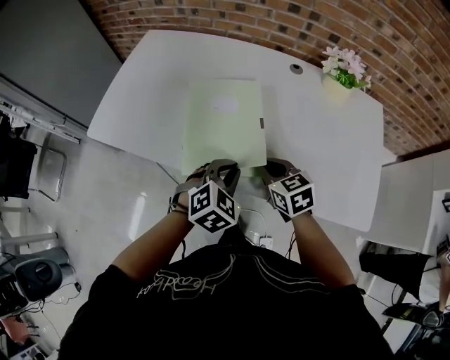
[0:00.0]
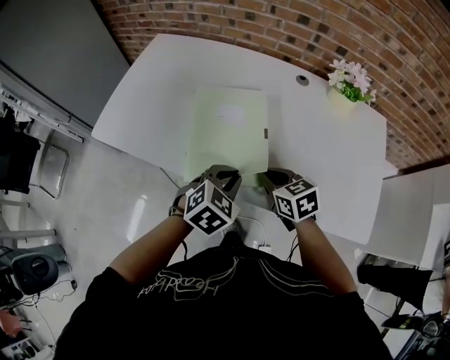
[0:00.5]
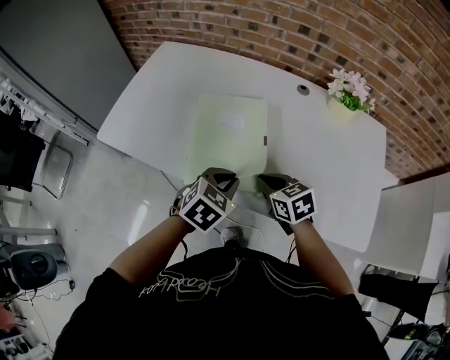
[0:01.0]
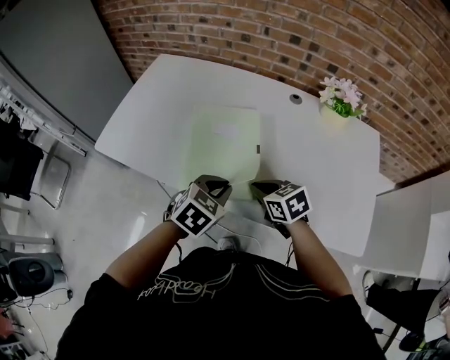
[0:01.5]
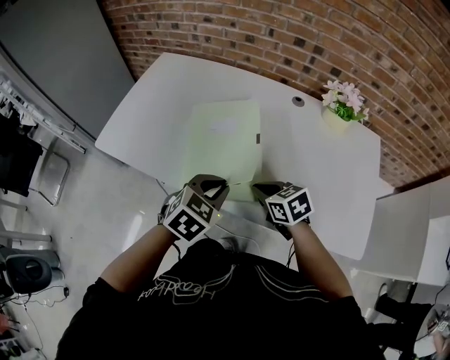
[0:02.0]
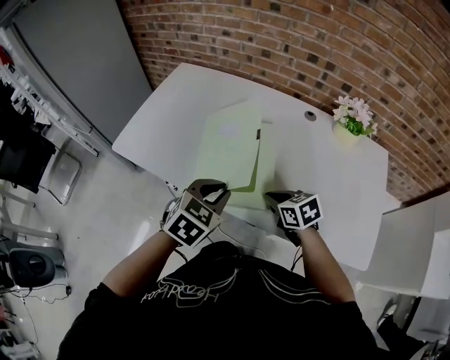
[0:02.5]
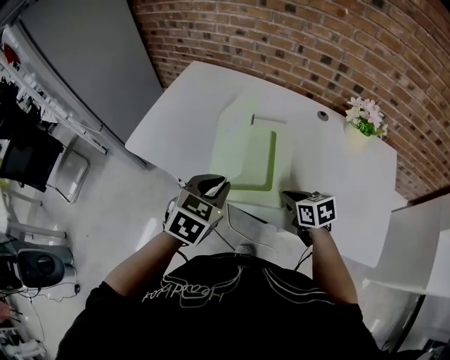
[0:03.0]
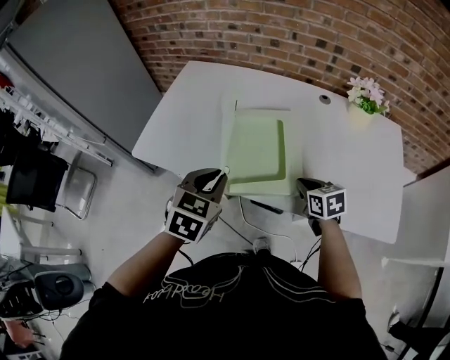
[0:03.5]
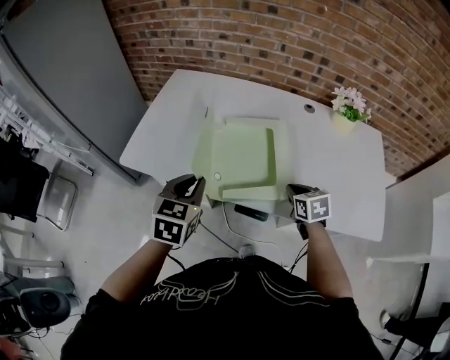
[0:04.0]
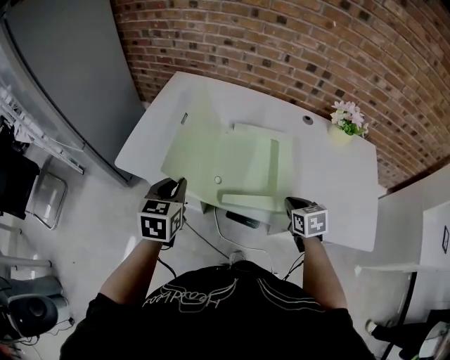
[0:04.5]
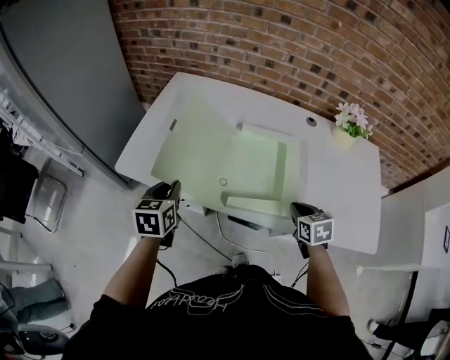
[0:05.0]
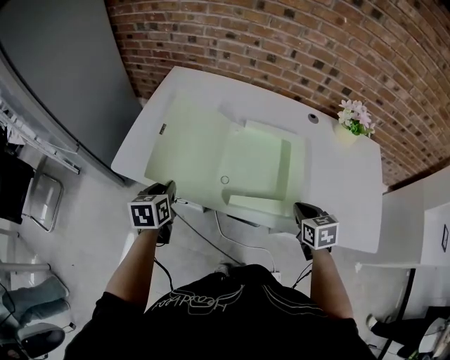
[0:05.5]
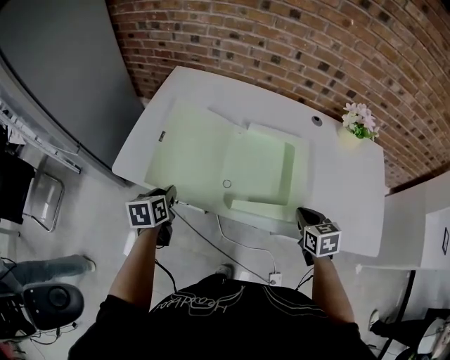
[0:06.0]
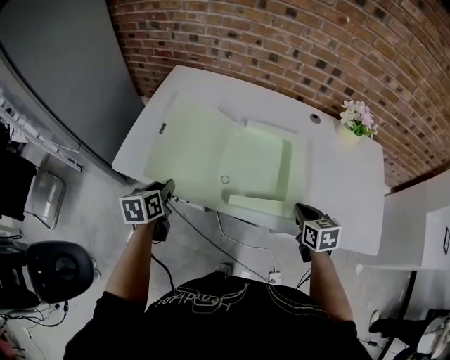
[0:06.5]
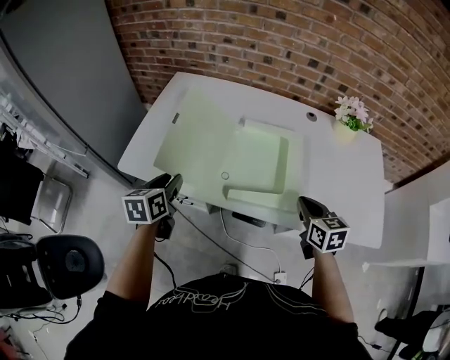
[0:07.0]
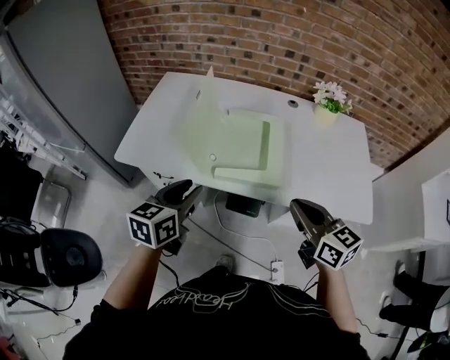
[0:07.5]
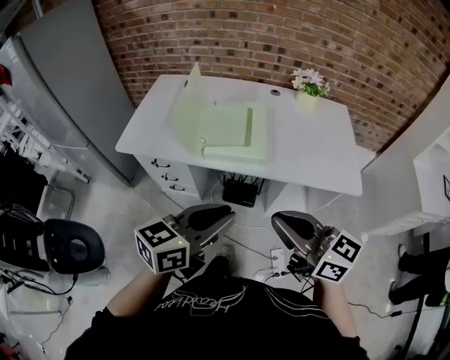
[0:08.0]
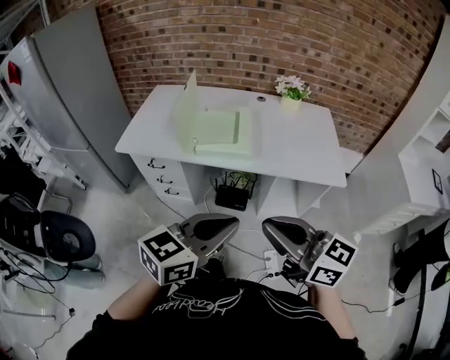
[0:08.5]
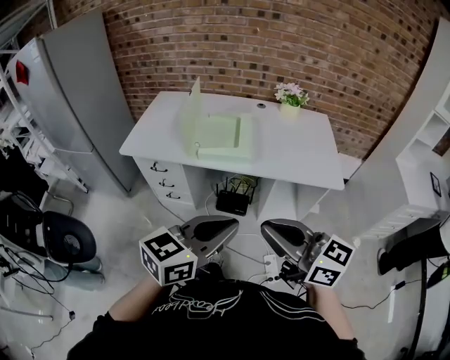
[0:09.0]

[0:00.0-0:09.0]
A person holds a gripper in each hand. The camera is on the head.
0:00.0 to 0:02.0: The grippers stay close to where they were, moving slightly.
0:02.0 to 0:04.5: The right gripper turns by about 30 degrees, while the left gripper is displaced to the left by about 25 cm, and changes its angle by about 30 degrees.
0:04.5 to 0:07.0: The right gripper moves upward, approximately 5 cm. Meanwhile the left gripper travels downward and back again, some 10 cm each way, and opens.
0:07.0 to 0:09.0: The right gripper heads backward and upward, covering some 50 cm, and tips its fingers upward by approximately 40 degrees, while the left gripper travels backward, to the right and upward by some 60 cm, changes its angle by about 50 degrees, and closes up.

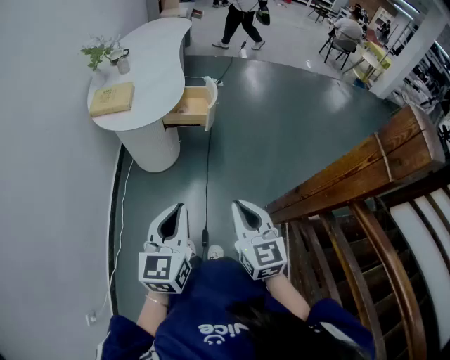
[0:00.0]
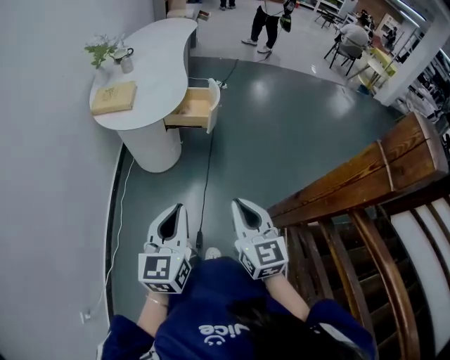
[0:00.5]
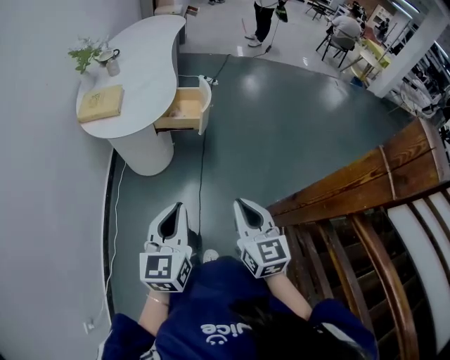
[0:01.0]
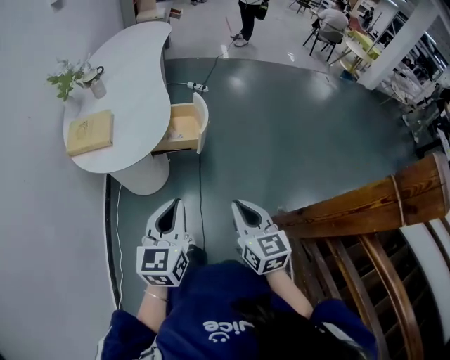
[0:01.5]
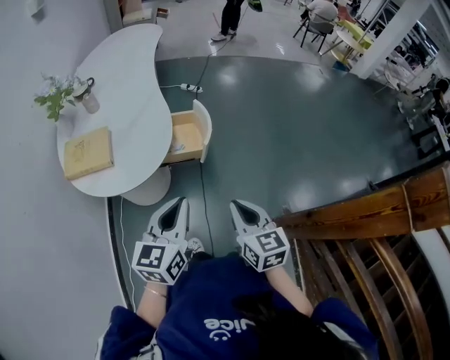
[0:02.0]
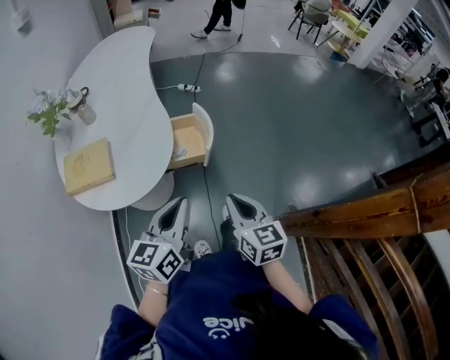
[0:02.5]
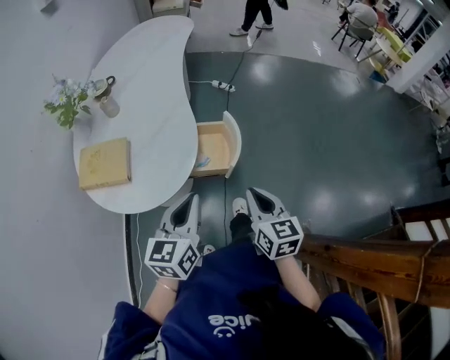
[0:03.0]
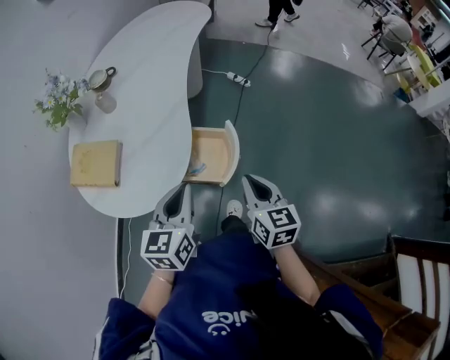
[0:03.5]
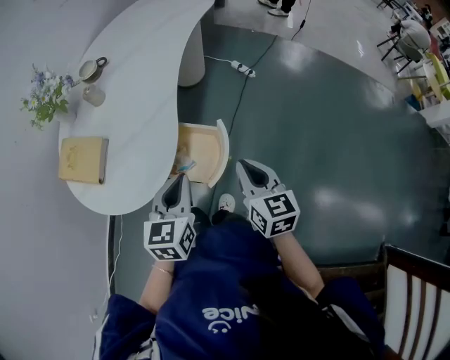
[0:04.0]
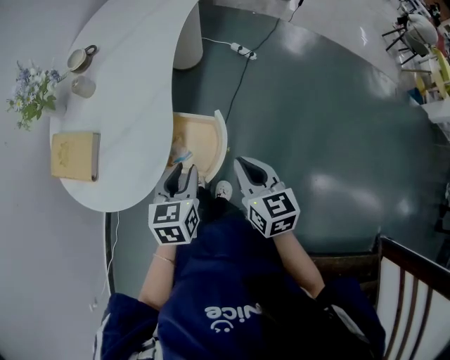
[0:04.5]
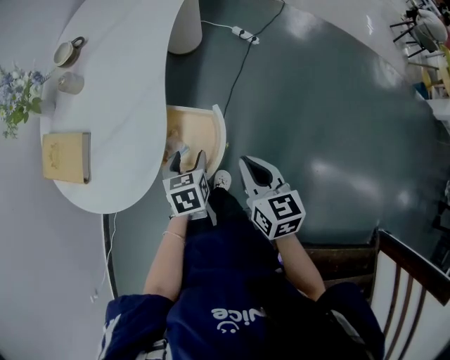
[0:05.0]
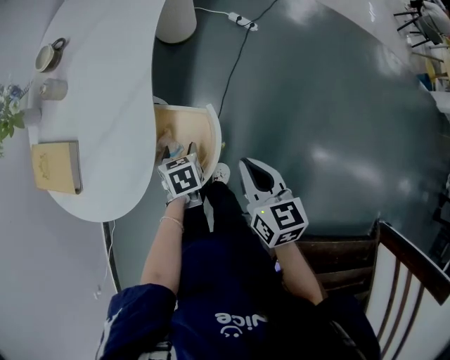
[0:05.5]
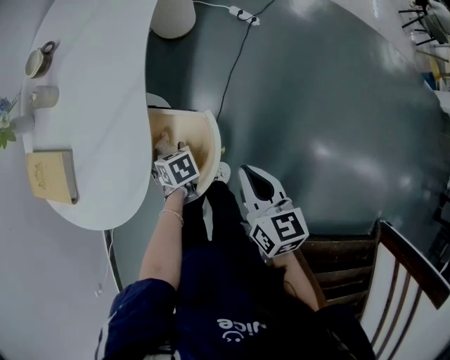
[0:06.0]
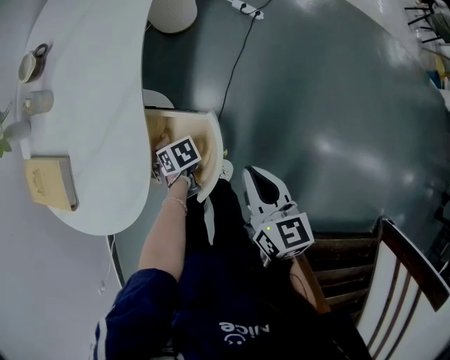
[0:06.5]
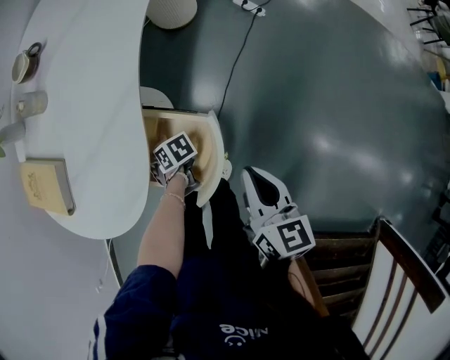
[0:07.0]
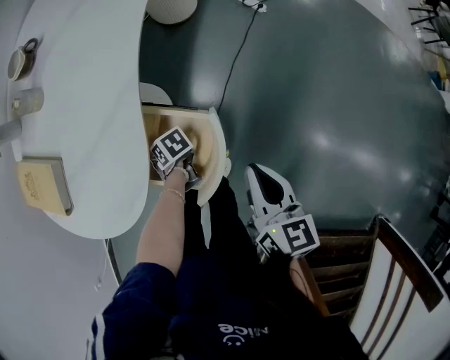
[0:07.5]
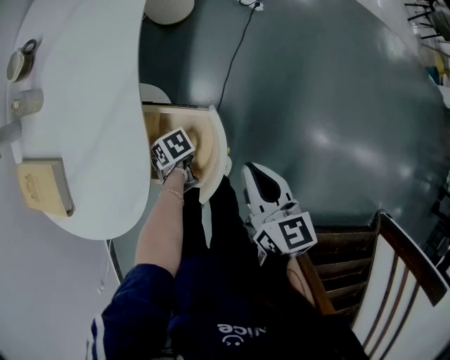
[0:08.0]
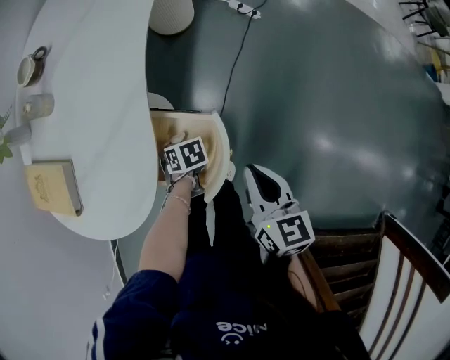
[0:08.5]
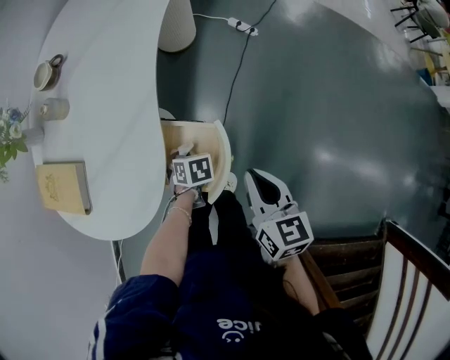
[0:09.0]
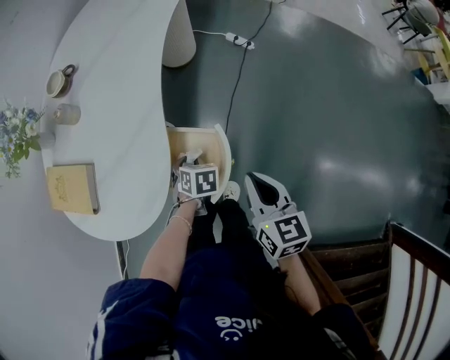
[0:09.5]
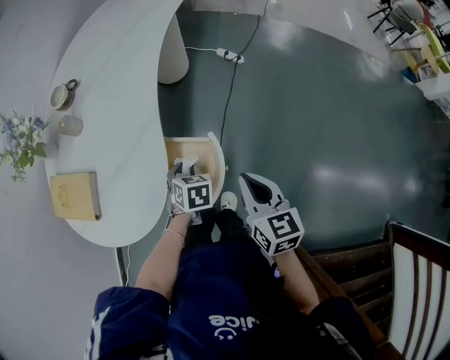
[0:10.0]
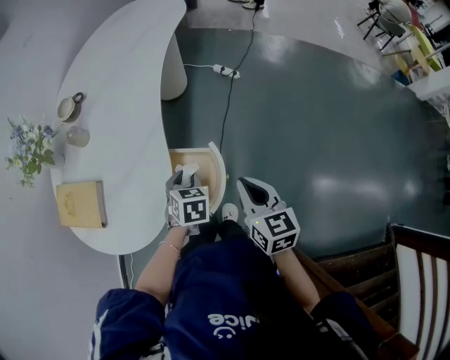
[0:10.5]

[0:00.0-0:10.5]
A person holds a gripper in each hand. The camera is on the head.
0:00.0 to 0:02.0: The two grippers go approximately 25 cm forward.
0:02.0 to 0:04.0: The right gripper ends up approximately 35 cm from where it was, and rotates some 20 degrees. Meanwhile the left gripper ends up roughly 30 cm from where it was, and rotates roughly 30 degrees.
0:04.0 to 0:06.5: The left gripper shifts roughly 35 cm downward, points its fingers approximately 50 degrees further downward, and opens its fingers. The right gripper is displaced downward by roughly 10 cm.
0:06.5 to 0:08.5: The left gripper closes up.
0:08.5 to 0:10.5: The left gripper shifts about 20 cm upward, and changes its angle by some 40 degrees, while the right gripper is displaced upward by approximately 10 cm.

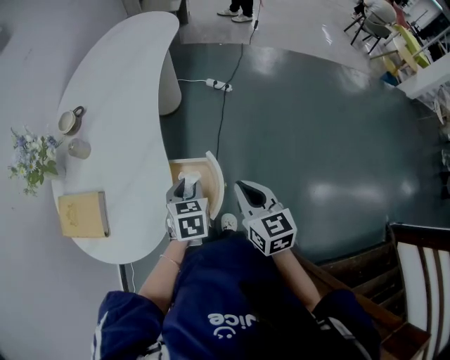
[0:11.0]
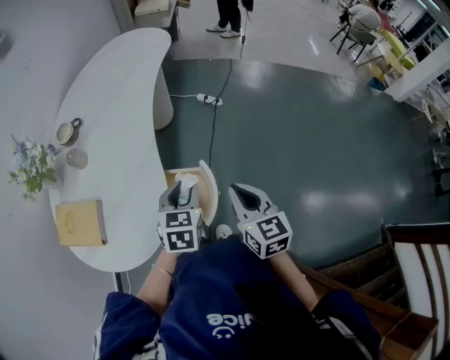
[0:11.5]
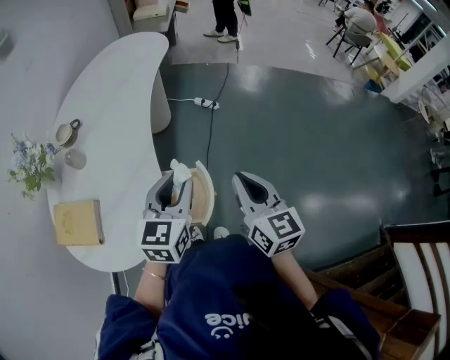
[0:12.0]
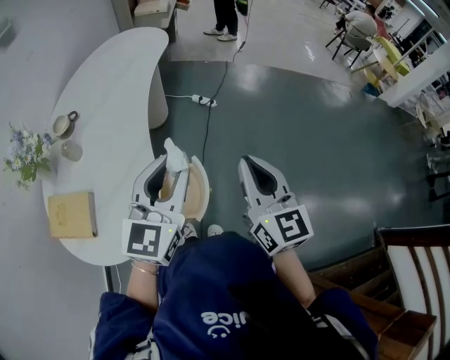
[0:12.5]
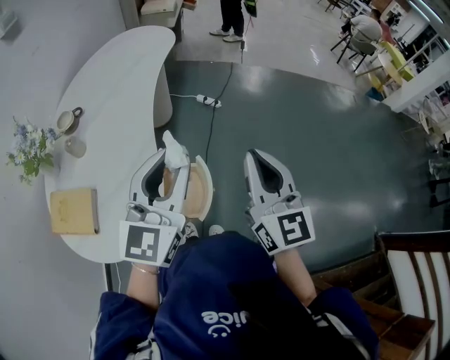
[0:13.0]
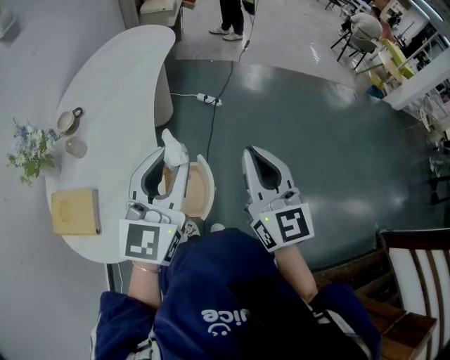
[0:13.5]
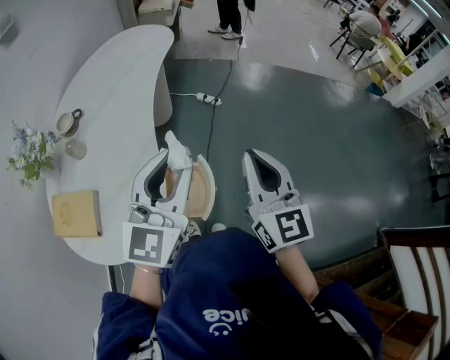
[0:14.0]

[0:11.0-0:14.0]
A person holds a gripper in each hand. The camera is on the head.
0:11.0 to 0:12.5: The right gripper is displaced upward by some 15 cm, and rotates roughly 30 degrees. Meanwhile the left gripper is displaced upward by roughly 25 cm, and points its fingers roughly 50 degrees further upward.
0:12.5 to 0:14.0: The grippers make only small movements.

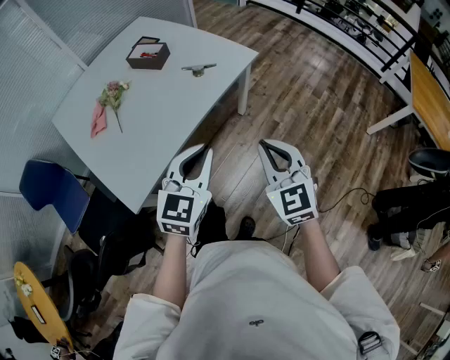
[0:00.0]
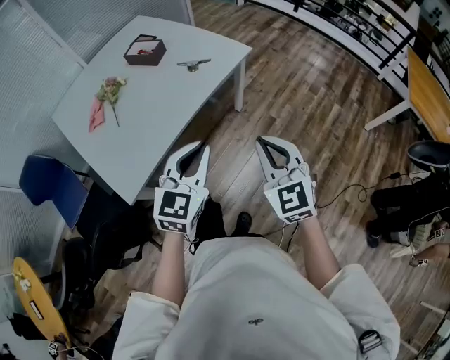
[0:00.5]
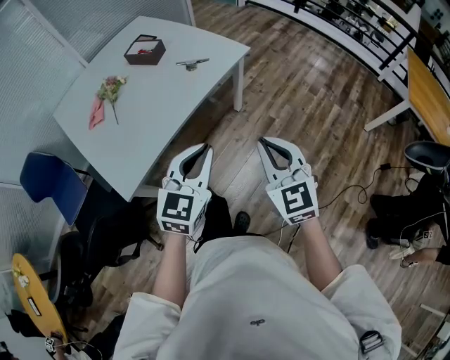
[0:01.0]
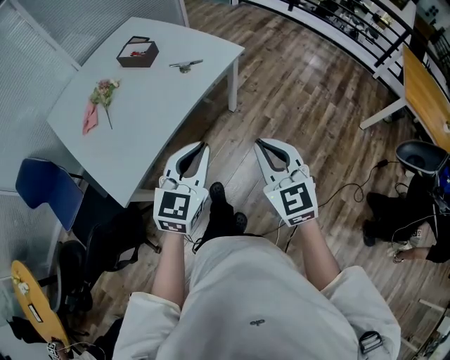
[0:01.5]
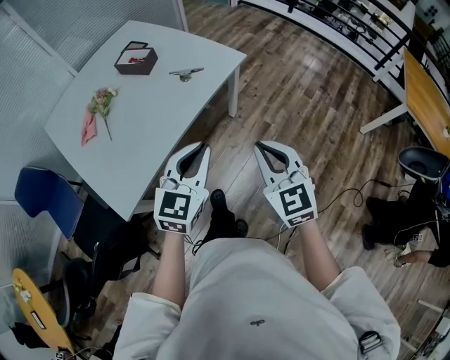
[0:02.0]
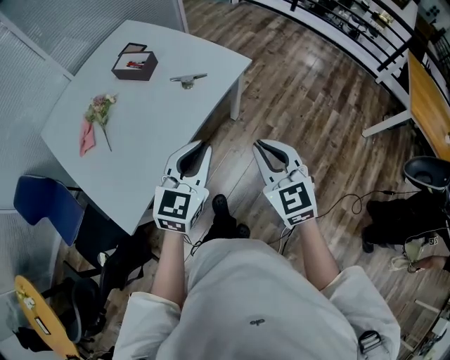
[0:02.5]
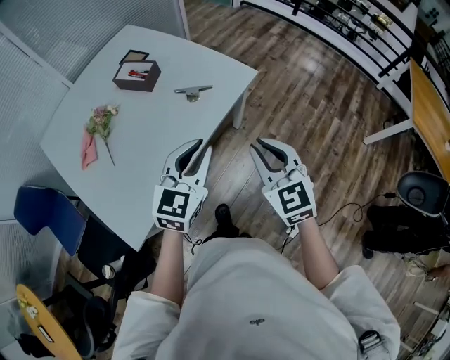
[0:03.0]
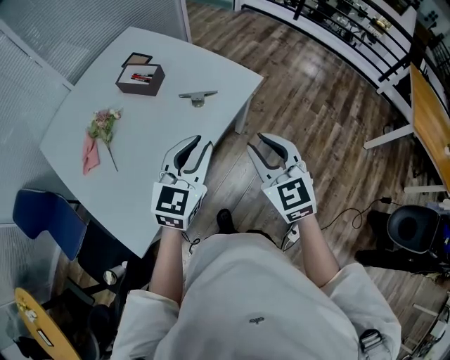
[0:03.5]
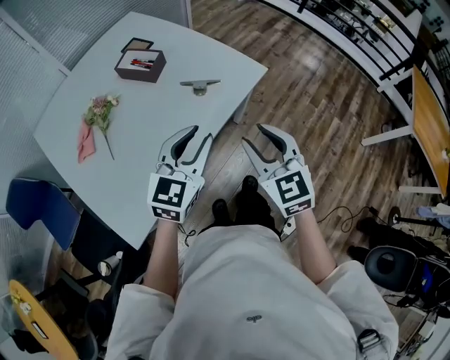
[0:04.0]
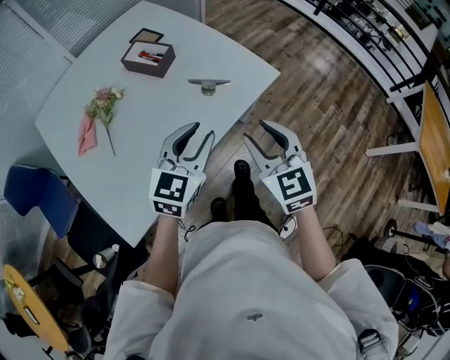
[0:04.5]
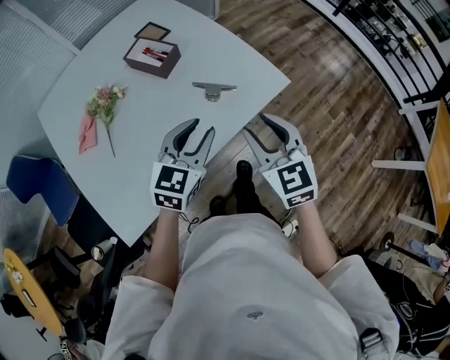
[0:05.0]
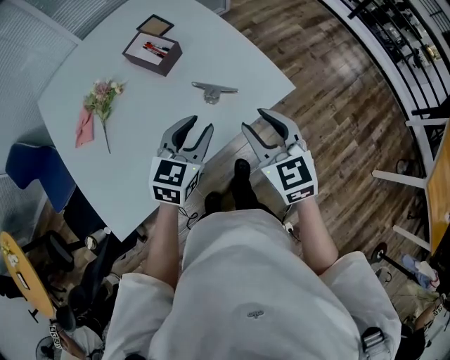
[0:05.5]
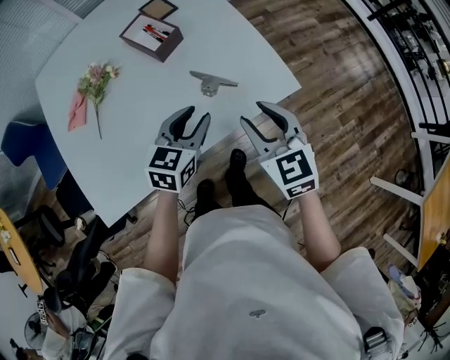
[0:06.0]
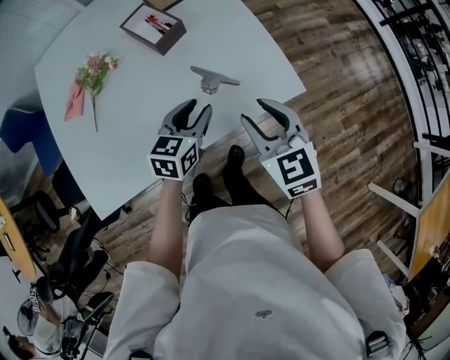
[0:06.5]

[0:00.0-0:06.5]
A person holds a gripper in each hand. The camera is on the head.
0:02.0 to 0:04.5: The two grippers go about 25 cm forward and to the left. The right gripper opens up; the left gripper opens.
0:04.5 to 0:06.5: The left gripper travels forward and downward by roughly 20 cm, and rotates approximately 30 degrees; the right gripper heads forward, covering approximately 15 cm, and changes its angle by about 20 degrees.
